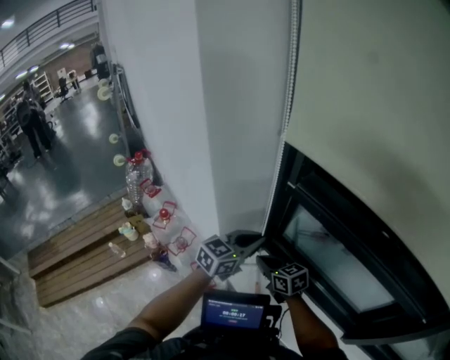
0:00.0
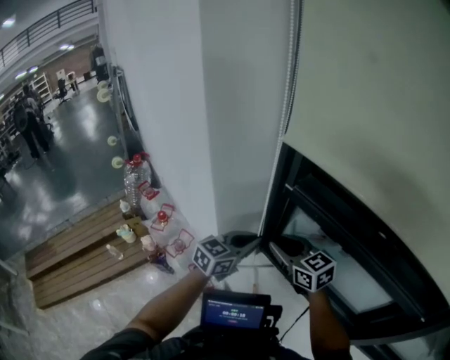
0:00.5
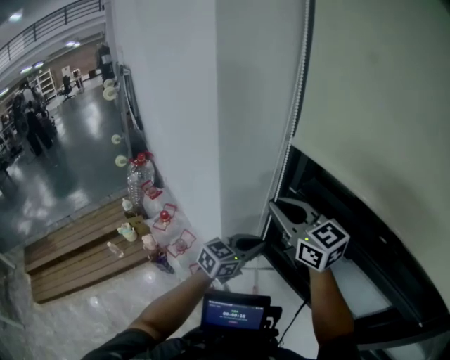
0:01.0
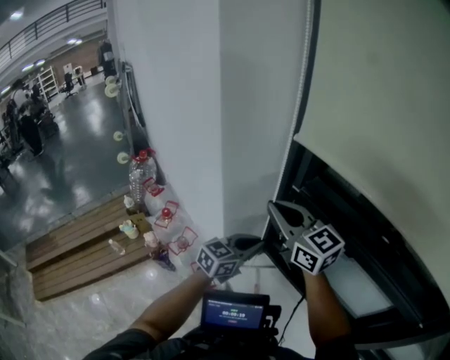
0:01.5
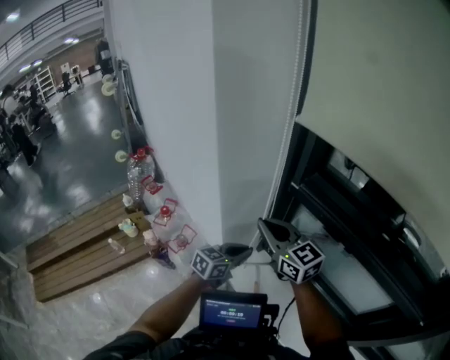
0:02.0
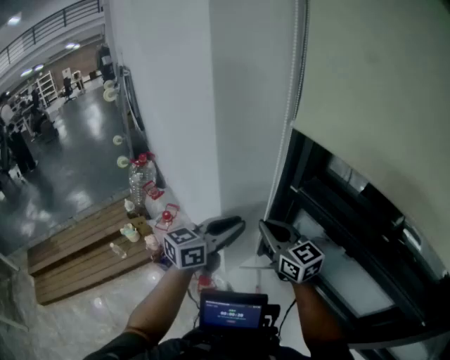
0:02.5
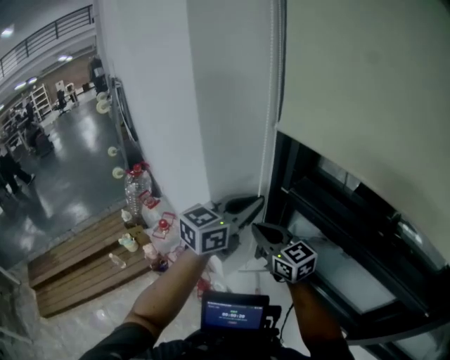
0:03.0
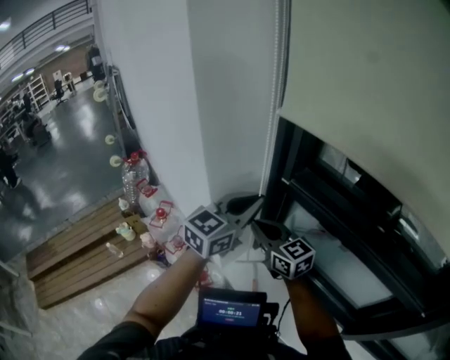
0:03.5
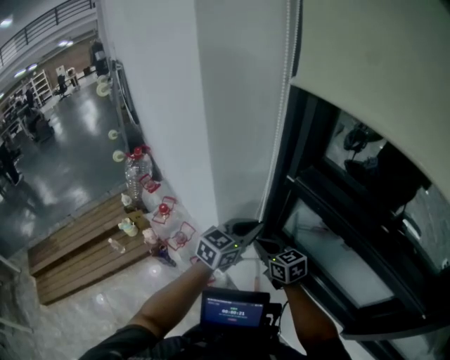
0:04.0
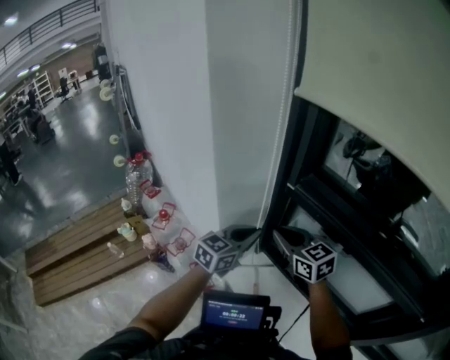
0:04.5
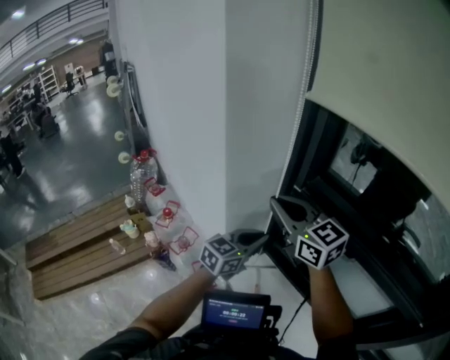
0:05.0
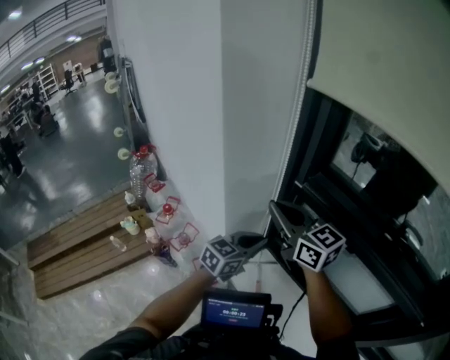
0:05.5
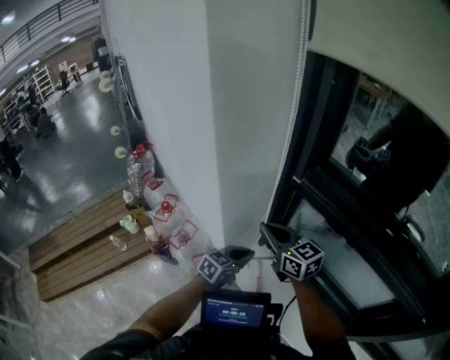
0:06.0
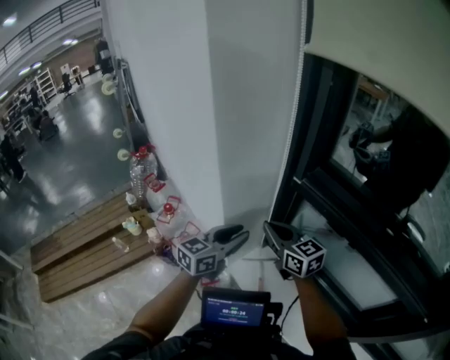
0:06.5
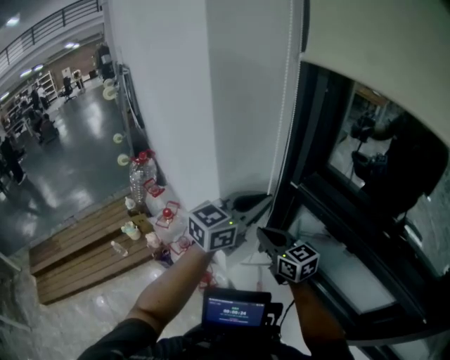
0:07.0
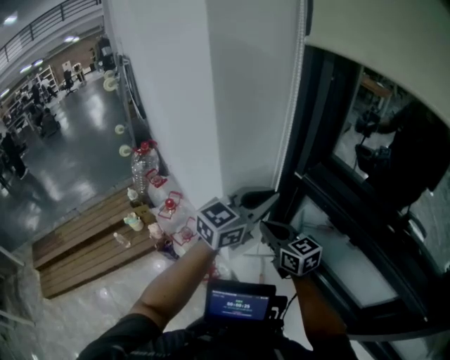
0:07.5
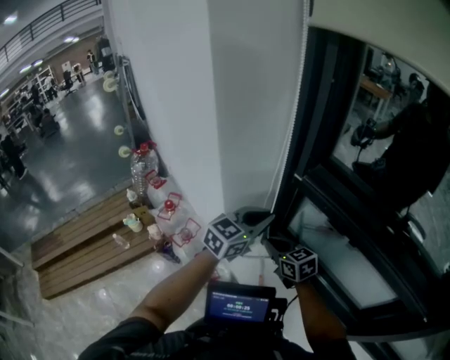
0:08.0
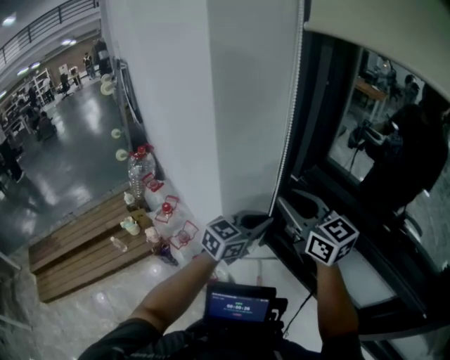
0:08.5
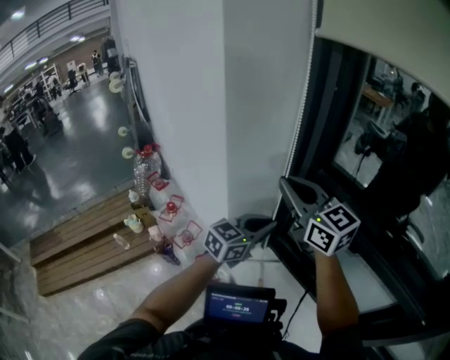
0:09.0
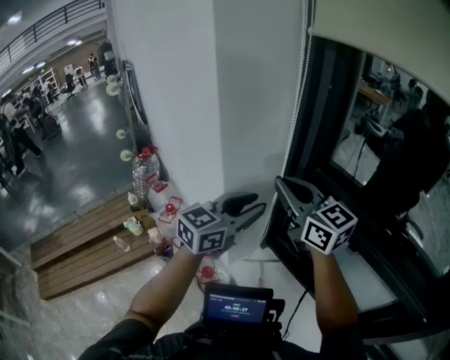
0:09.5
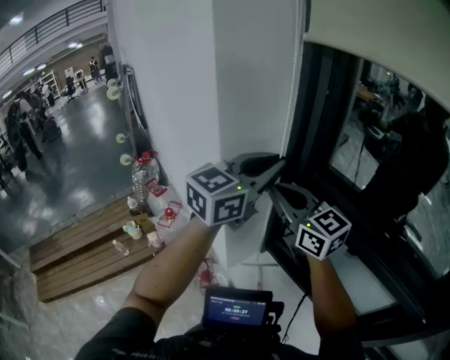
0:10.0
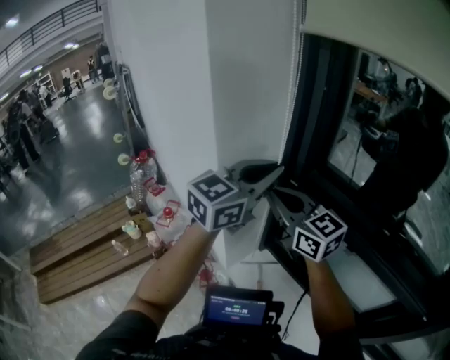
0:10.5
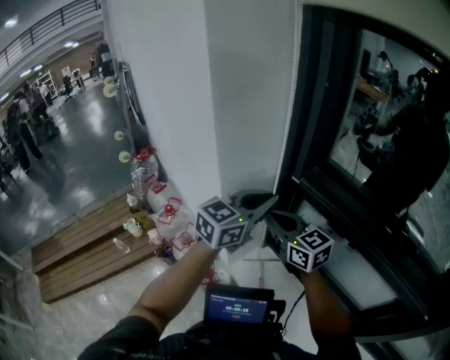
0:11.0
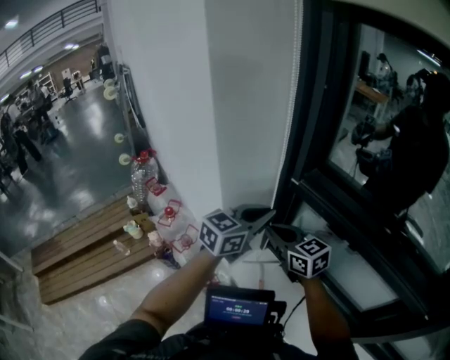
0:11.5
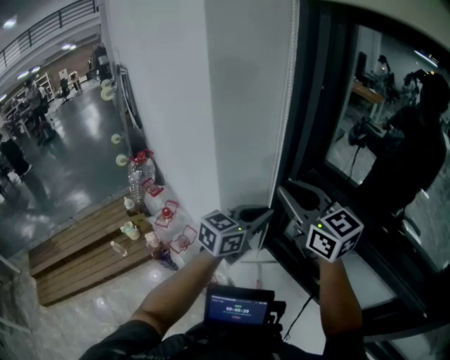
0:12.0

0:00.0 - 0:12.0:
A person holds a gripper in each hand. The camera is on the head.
0:00.0 - 0:02.0: The right gripper travels upward by some 20 cm, rotates approximately 30 degrees, and opens and closes again. Meanwhile the left gripper travels downward by roughly 10 cm.
0:02.0 - 0:04.0: The left gripper shifts approximately 10 cm upward. Meanwhile the right gripper travels downward by about 15 cm, and changes its angle by some 20 degrees.
0:04.0 - 0:06.0: The left gripper shifts approximately 15 cm downward. Meanwhile the right gripper goes about 10 cm upward.
0:06.0 - 0:08.0: The left gripper travels upward by roughly 15 cm, and opens, then closes once more. The right gripper is displaced downward by about 10 cm.
0:08.0 - 0:10.0: Both grippers move upward, some 25 cm. The right gripper turns by roughly 30 degrees, and opens, then closes again. Meanwhile the left gripper opens and closes again.
0:10.0 - 0:12.0: The right gripper goes downward and returns, roughly 15 cm each way. Meanwhile the left gripper heads downward, covering roughly 20 cm.

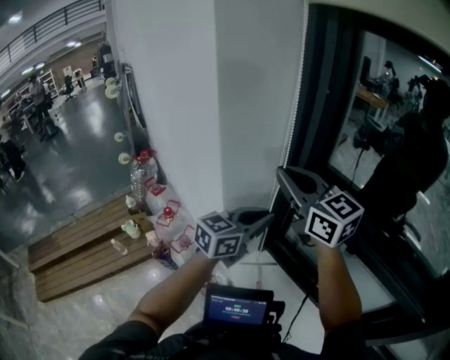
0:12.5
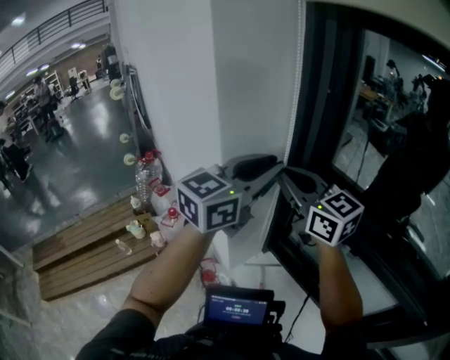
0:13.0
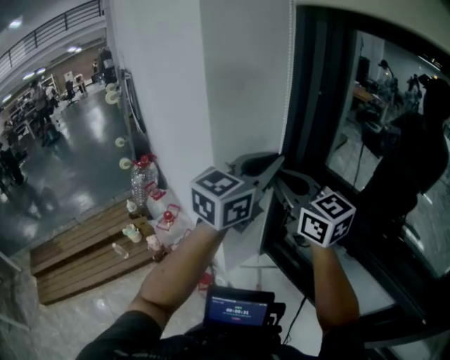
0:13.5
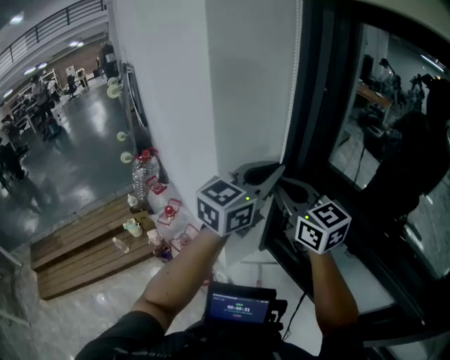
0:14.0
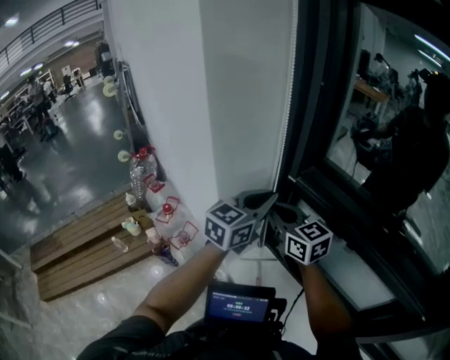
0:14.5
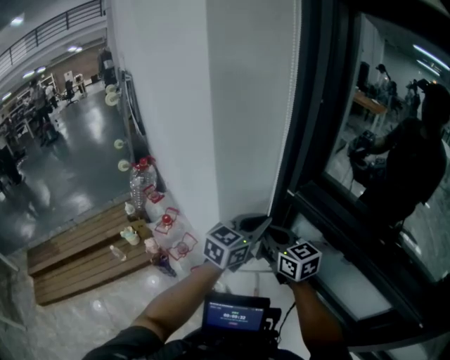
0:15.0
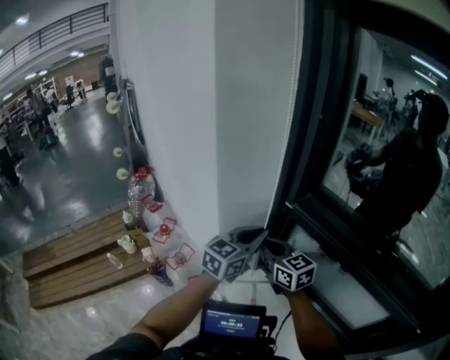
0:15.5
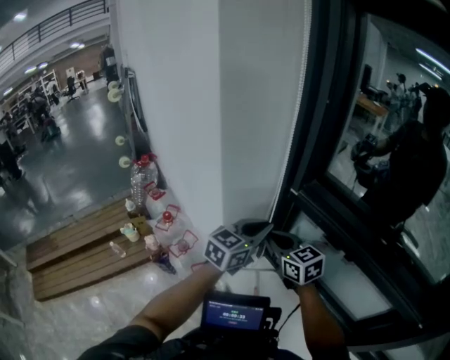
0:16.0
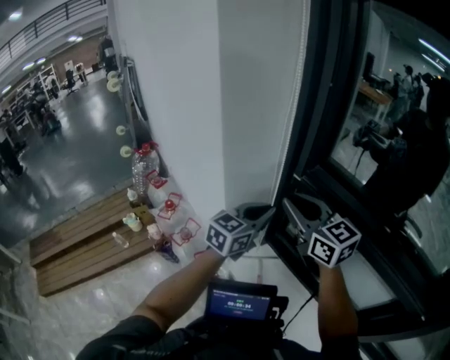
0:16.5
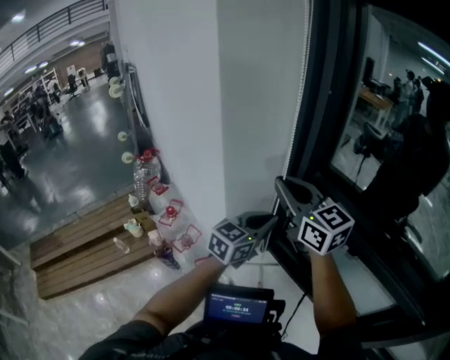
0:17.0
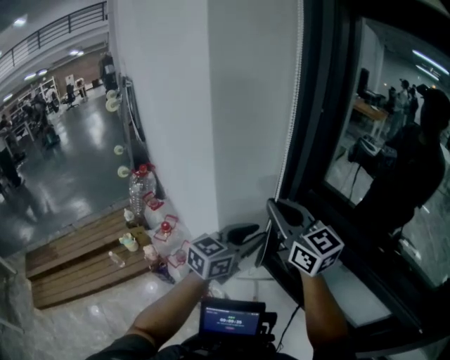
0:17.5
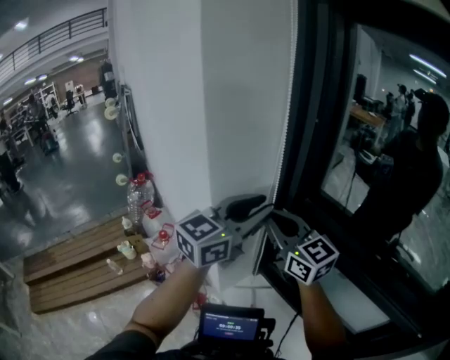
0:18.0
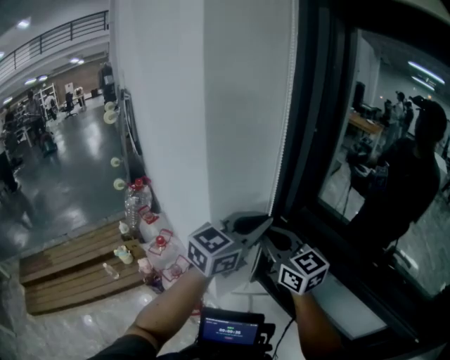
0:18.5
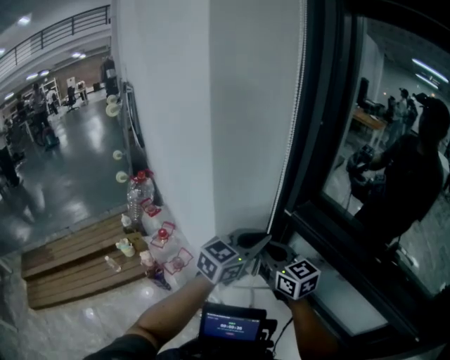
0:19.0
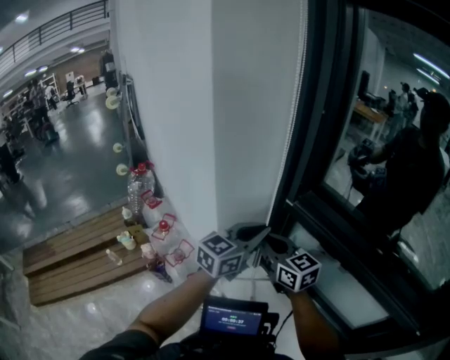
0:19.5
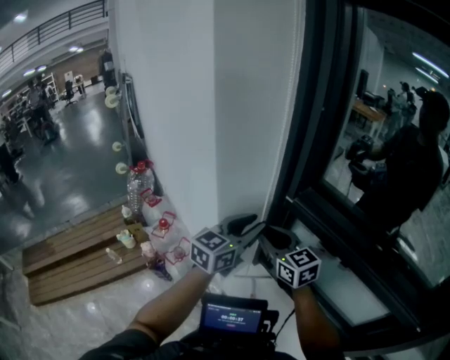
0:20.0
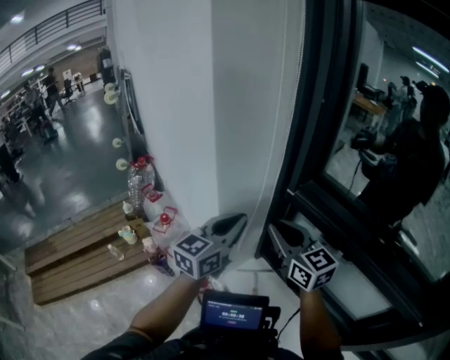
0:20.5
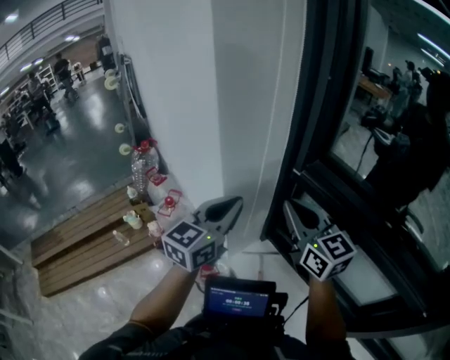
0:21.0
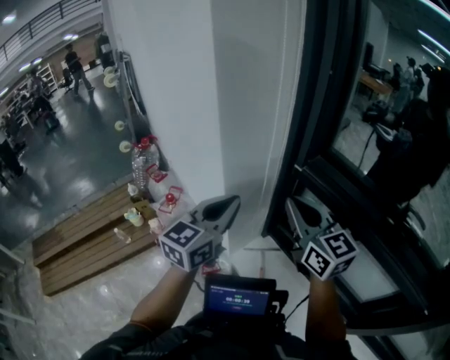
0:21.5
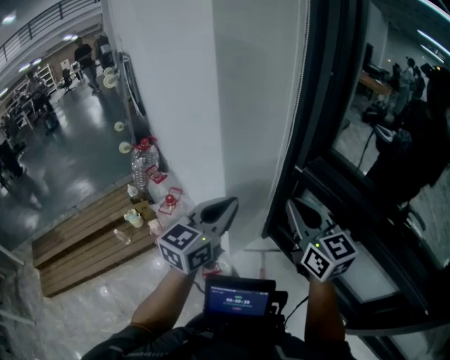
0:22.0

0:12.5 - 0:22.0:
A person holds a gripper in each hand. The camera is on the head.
0:12.5 - 0:14.5: The left gripper reaches roughly 15 cm upward, then returns. The right gripper goes approximately 15 cm downward.
0:14.5 - 0:16.5: The left gripper shifts about 5 cm downward. The right gripper shifts roughly 5 cm upward.
0:16.5 - 0:18.0: The right gripper ends up some 5 cm from where it was. The left gripper goes some 15 cm upward, and opens its fingers.
0:18.0 - 0:20.0: The two grippers go approximately 15 cm downward. The left gripper closes, then opens again, while the right gripper opens up.
0:20.0 - 0:22.0: The right gripper shifts some 10 cm upward, and closes up; the left gripper is displaced to the left and backward by approximately 10 cm, and closes up.

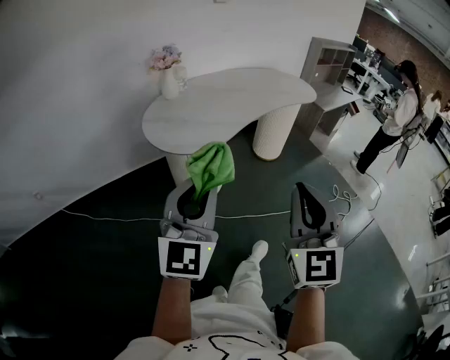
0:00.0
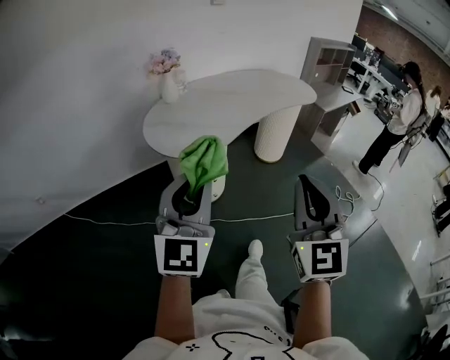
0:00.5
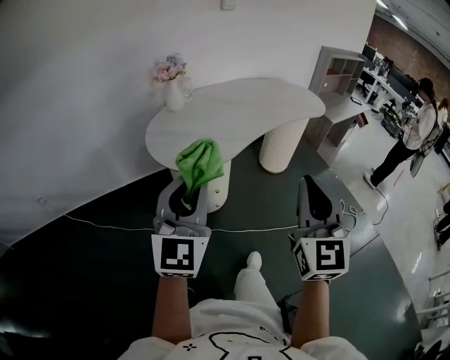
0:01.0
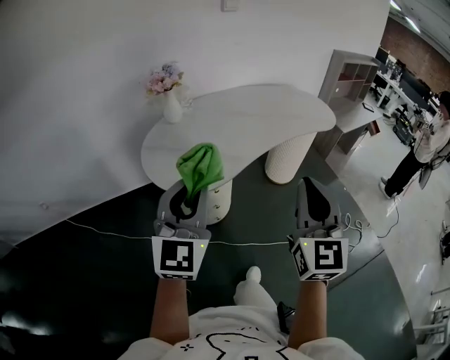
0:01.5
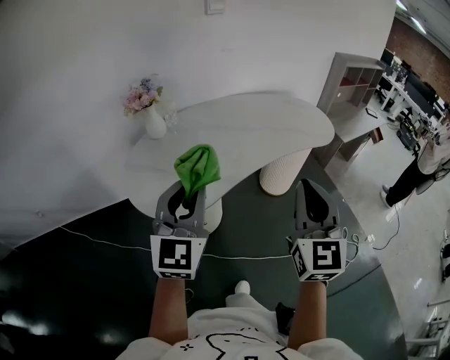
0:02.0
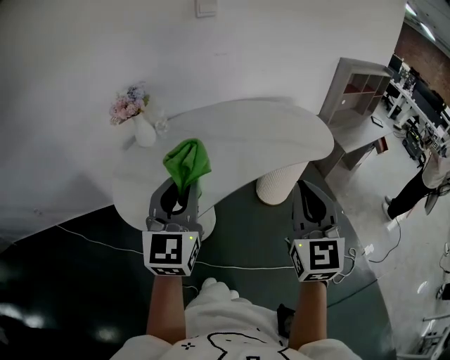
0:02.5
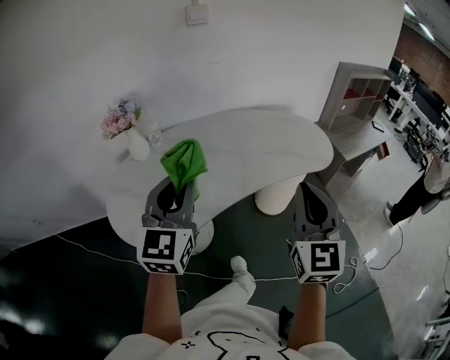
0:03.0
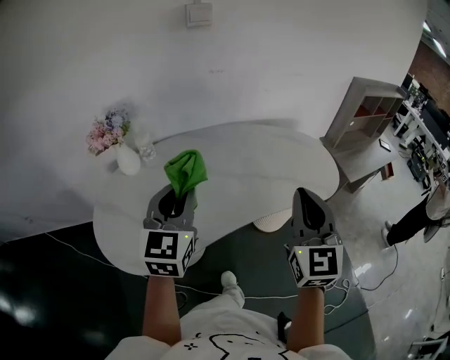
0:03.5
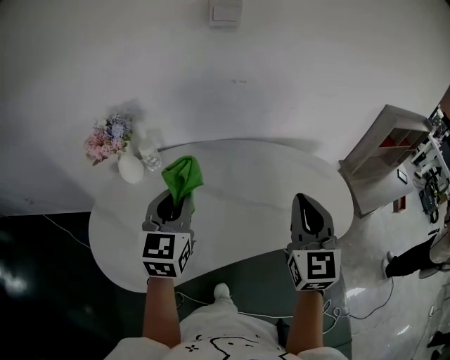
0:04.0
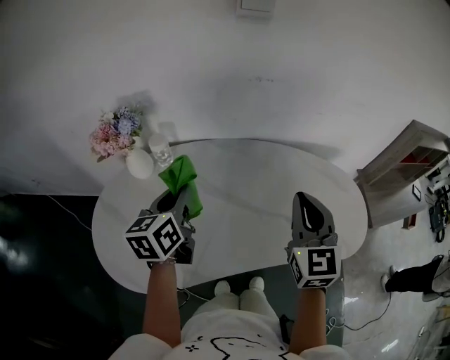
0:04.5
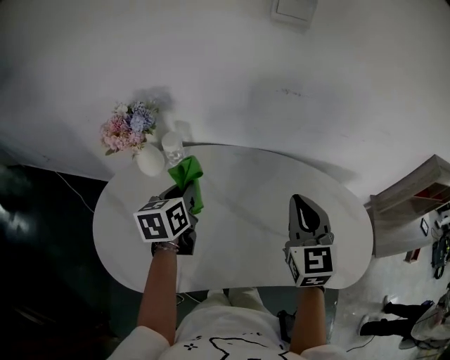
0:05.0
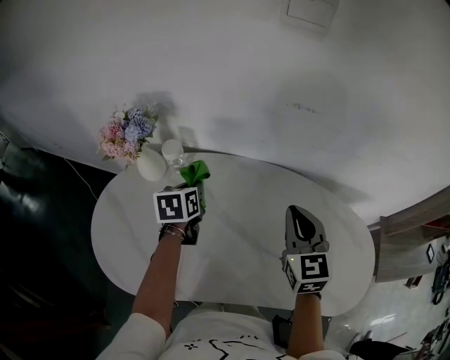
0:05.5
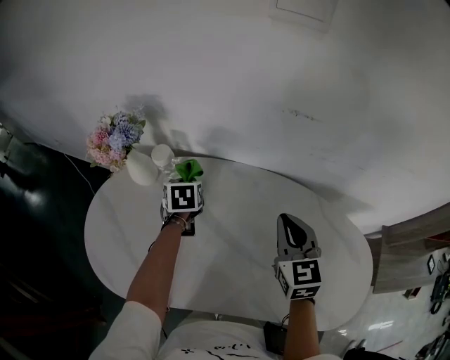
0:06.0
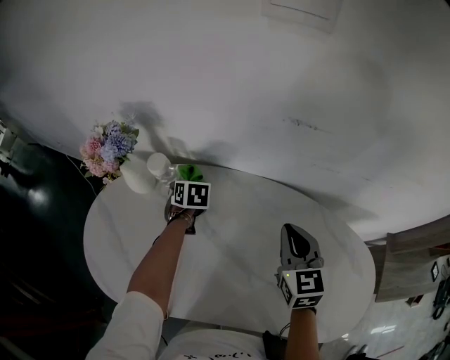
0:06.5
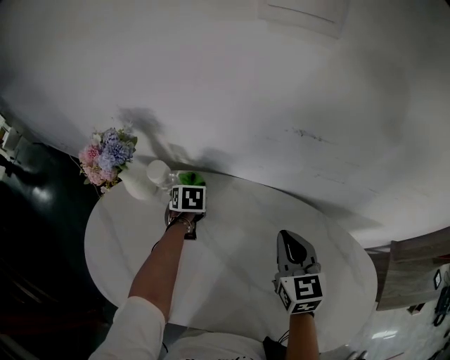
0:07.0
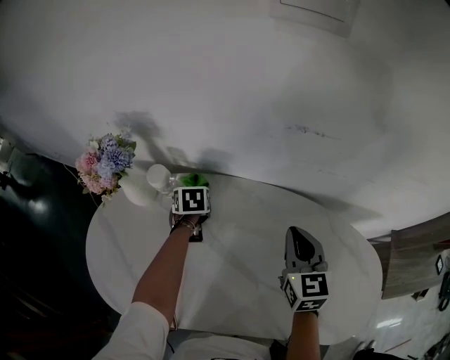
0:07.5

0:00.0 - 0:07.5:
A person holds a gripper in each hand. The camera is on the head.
0:00.0 - 0:02.0: Both grippers move forward, some 35 cm.
0:02.0 - 0:04.0: Both grippers travel together forward, some 40 cm. The left gripper swivels approximately 20 degrees.
0:04.0 - 0:05.5: The two grippers go some 25 cm forward and downward. The right gripper turns by roughly 30 degrees. Meanwhile the left gripper tips its fingers downward by some 30 degrees.
0:05.5 - 0:07.5: The left gripper shifts some 15 cm downward and forward, and changes its angle by some 20 degrees, while the right gripper travels downward and forward by approximately 10 cm.
